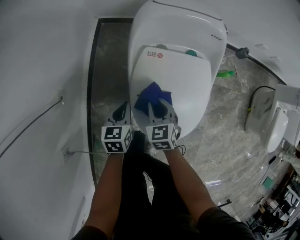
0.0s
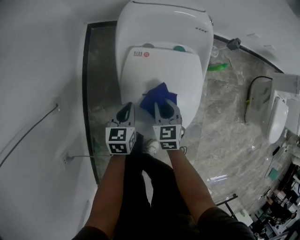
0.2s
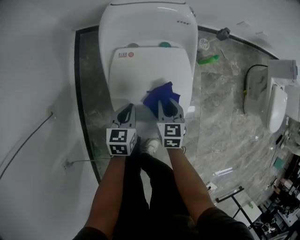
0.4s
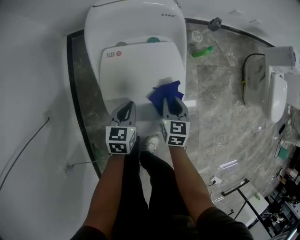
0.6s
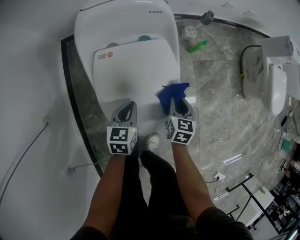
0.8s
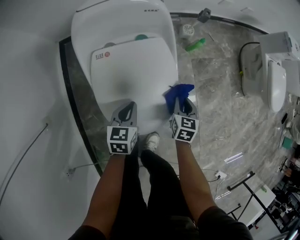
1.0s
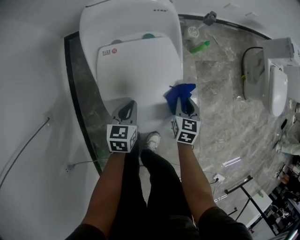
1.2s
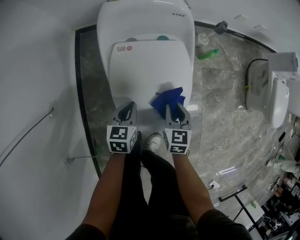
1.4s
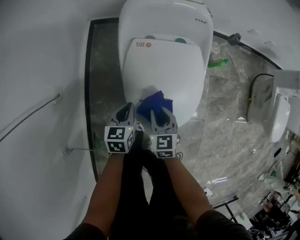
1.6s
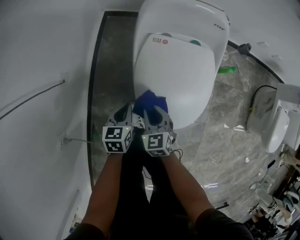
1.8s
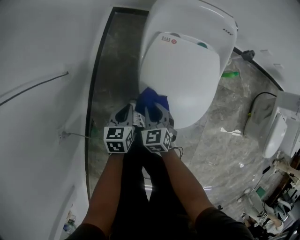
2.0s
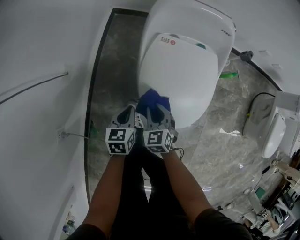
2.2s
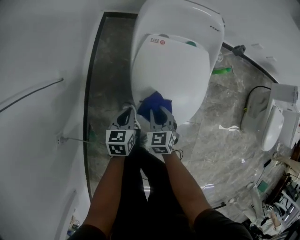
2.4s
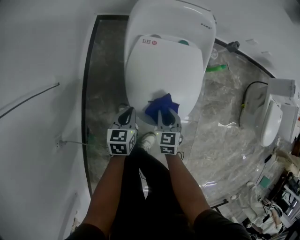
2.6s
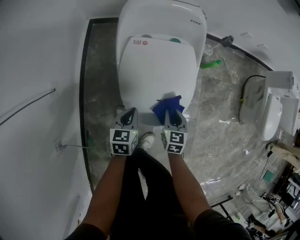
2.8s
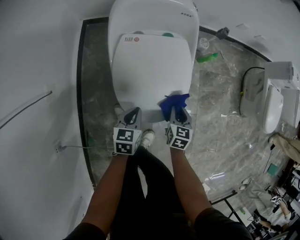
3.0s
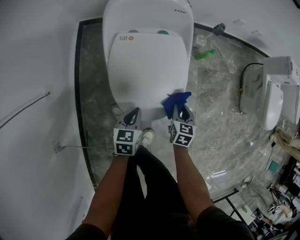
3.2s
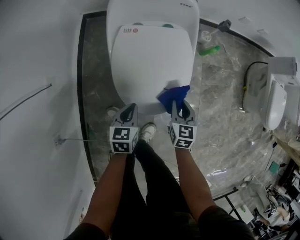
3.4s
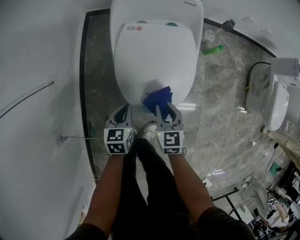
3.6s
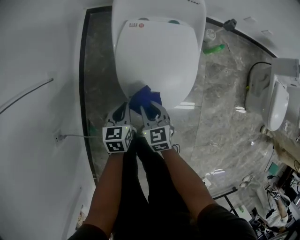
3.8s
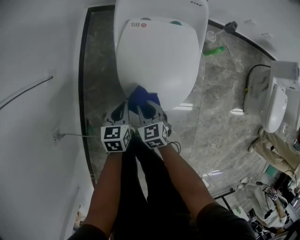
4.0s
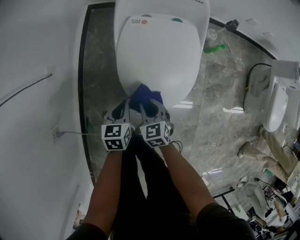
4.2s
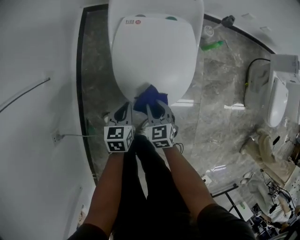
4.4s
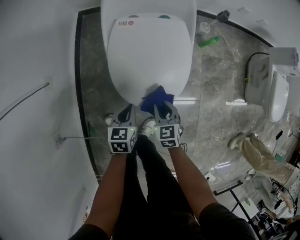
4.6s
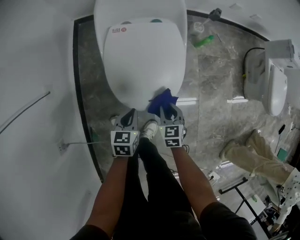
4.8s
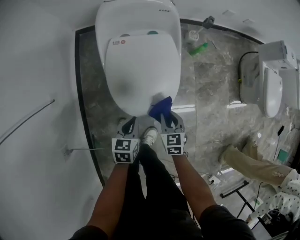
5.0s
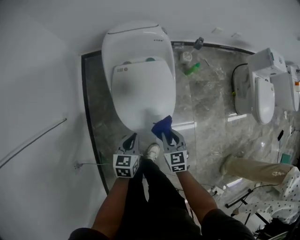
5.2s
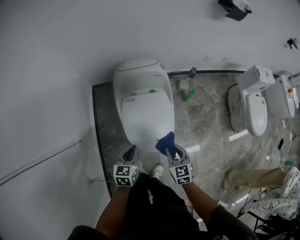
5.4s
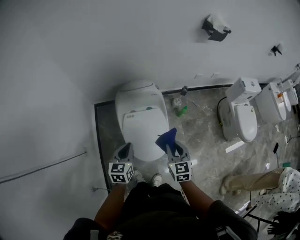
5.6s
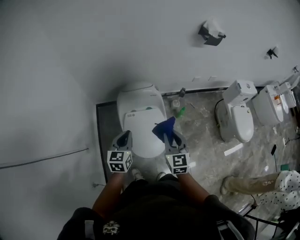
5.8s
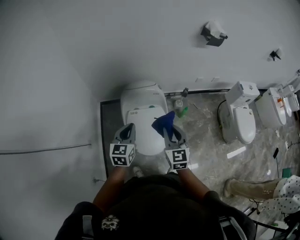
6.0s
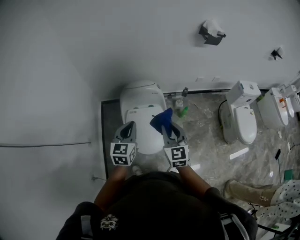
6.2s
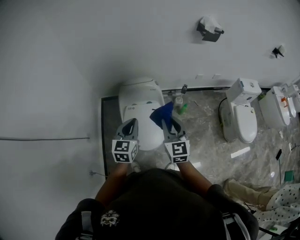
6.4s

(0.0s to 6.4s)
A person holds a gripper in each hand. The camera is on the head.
1.6s - 3.2s: The left gripper shifts by about 10 cm. The right gripper shifts by approximately 20 cm, and rotates some 30 degrees.
4.8s - 6.4s: The two grippers go some 50 cm upward. The left gripper turns by roughly 30 degrees; the right gripper tips its fingers upward by about 40 degrees.

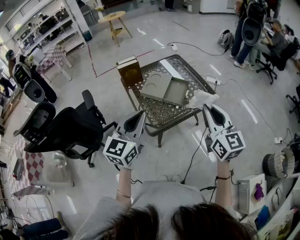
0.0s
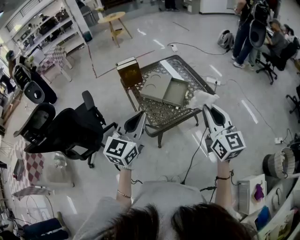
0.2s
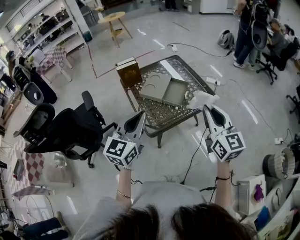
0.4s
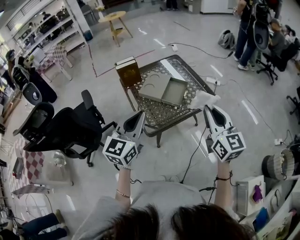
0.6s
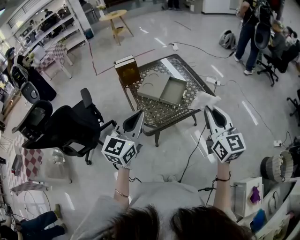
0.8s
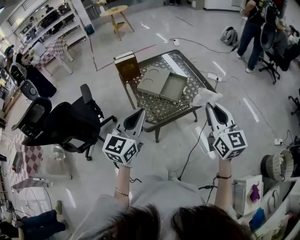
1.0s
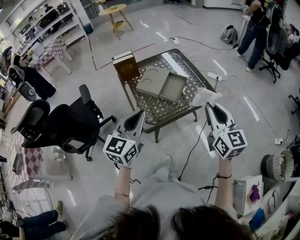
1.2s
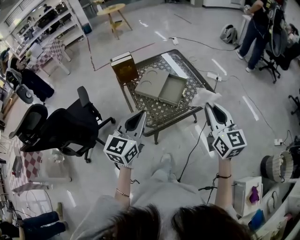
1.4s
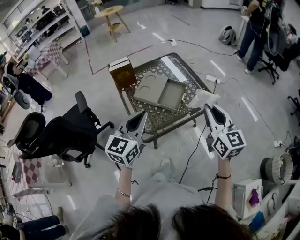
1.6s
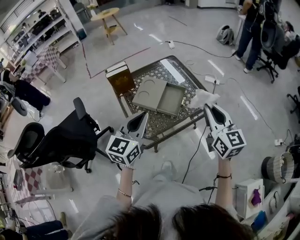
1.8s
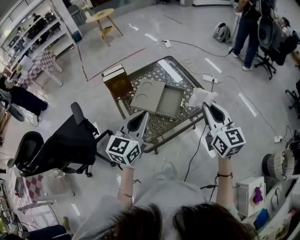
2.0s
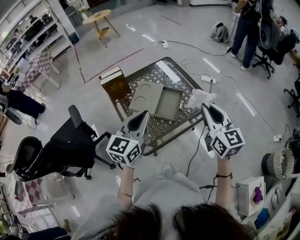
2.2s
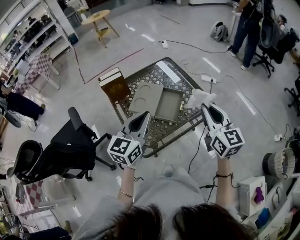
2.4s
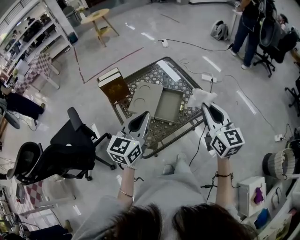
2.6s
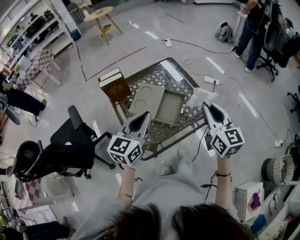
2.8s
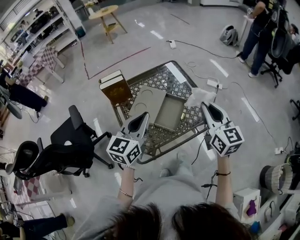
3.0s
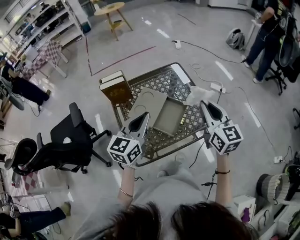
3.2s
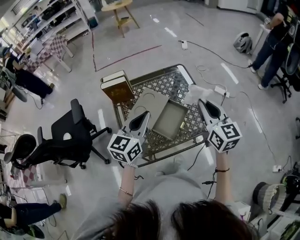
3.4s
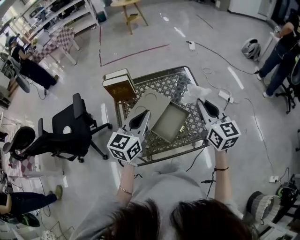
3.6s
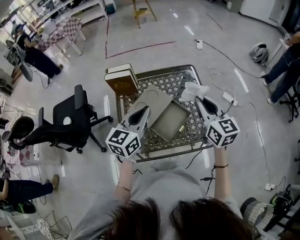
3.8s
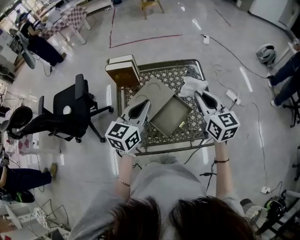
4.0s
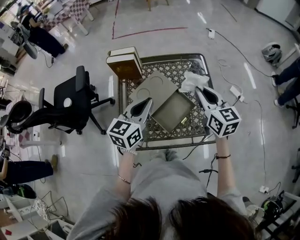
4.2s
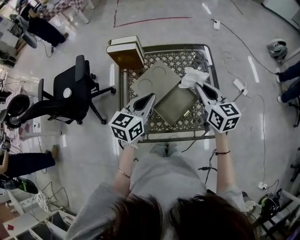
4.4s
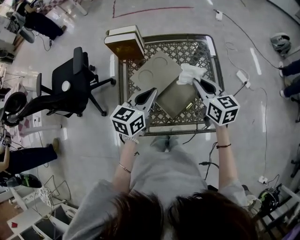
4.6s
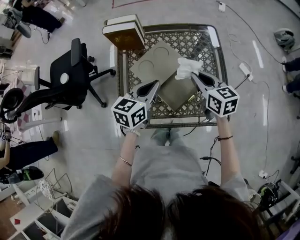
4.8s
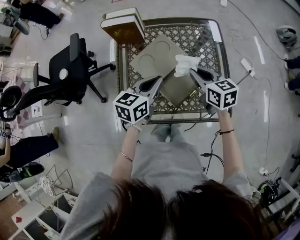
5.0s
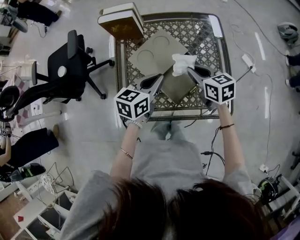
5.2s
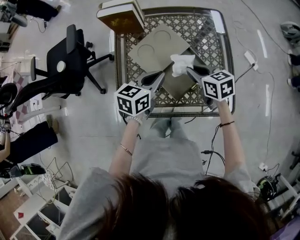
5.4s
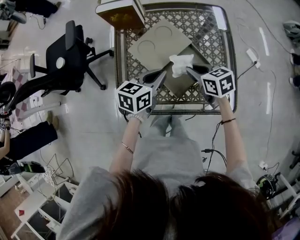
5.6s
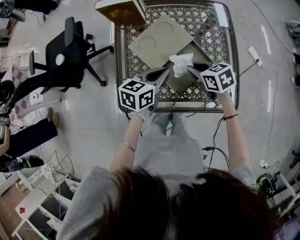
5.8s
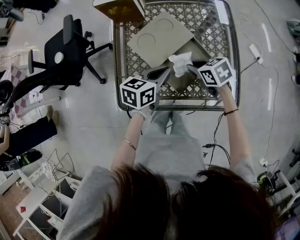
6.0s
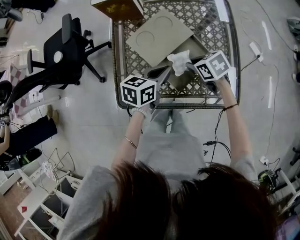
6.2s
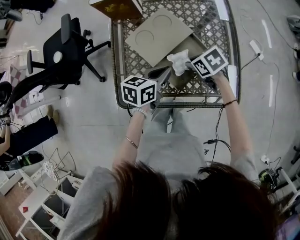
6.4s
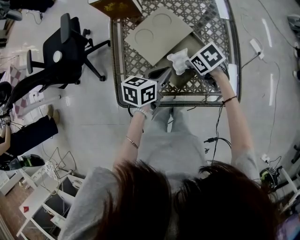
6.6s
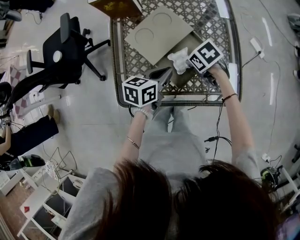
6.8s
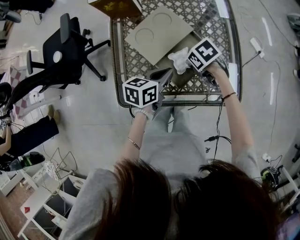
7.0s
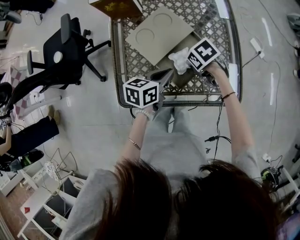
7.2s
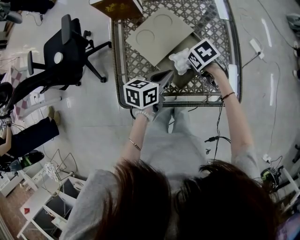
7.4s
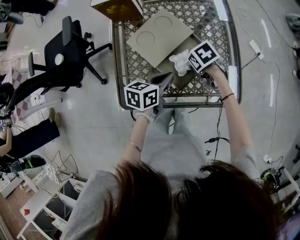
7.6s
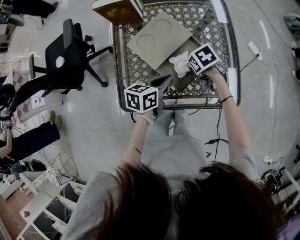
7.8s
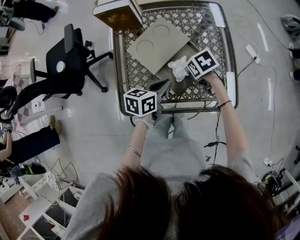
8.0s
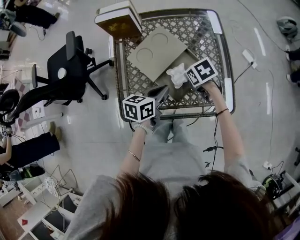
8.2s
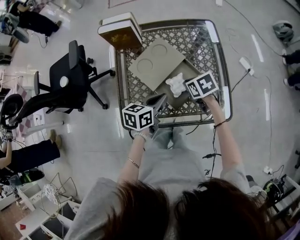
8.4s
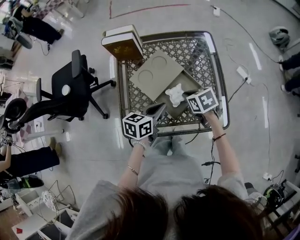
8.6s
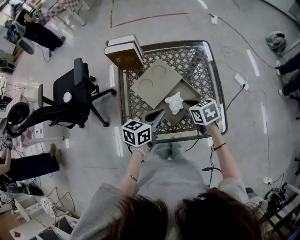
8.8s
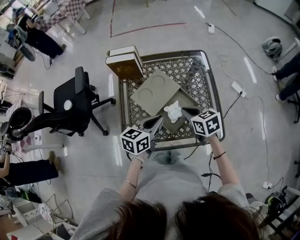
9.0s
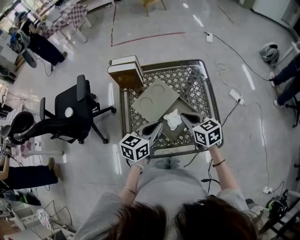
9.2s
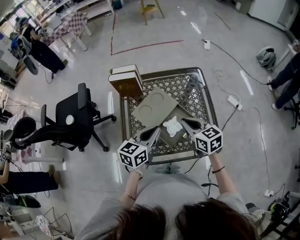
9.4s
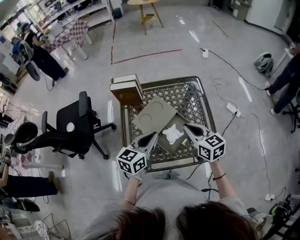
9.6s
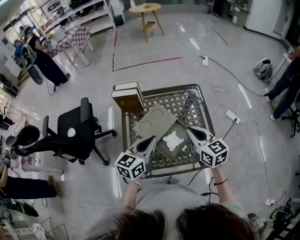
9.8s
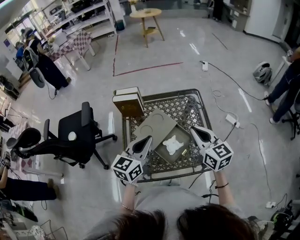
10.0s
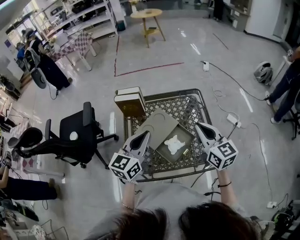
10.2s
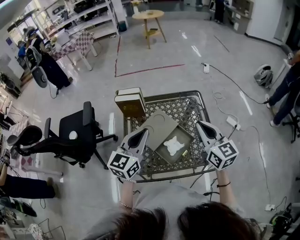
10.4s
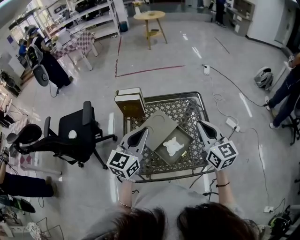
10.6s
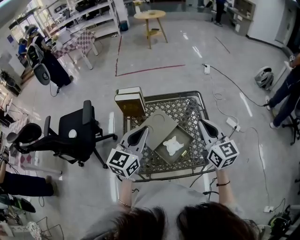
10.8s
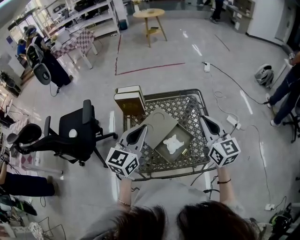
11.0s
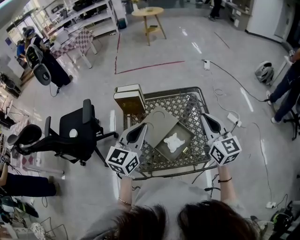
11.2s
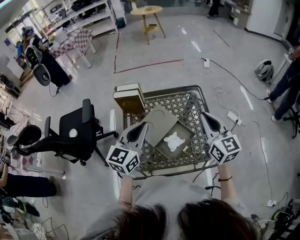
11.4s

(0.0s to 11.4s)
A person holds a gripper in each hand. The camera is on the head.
0.0s - 1.4s: The left gripper shifts by about 5 cm. The right gripper is displaced forward by some 5 cm.
1.4s - 2.8s: Both grippers move forward, approximately 15 cm.
2.8s - 4.2s: The right gripper ends up approximately 25 cm from where it was, and swivels approximately 30 degrees; the left gripper changes place by some 15 cm, and rotates roughly 20 degrees.
4.2s - 5.6s: Both grippers move downward, roughly 20 cm. The right gripper turns by some 40 degrees. The left gripper changes its angle by some 20 degrees.
5.6s - 7.2s: The left gripper shifts by some 5 cm; the right gripper heads downward, covering approximately 10 cm, and swivels about 30 degrees.
7.2s - 8.6s: The grippers both shift upward by roughly 5 cm. The right gripper rotates about 20 degrees, and opens, then closes again.
8.6s - 10.0s: The two grippers go about 20 cm upward. The right gripper points its fingers roughly 40 degrees further upward; the left gripper turns by approximately 30 degrees.
10.0s - 11.4s: The left gripper shifts by about 5 cm. Meanwhile the right gripper moves some 5 cm.

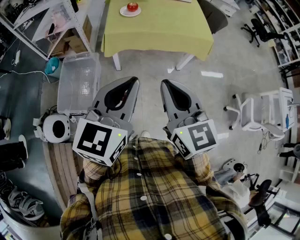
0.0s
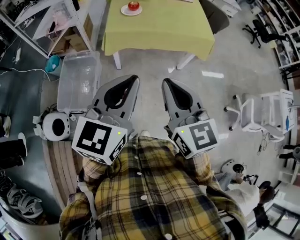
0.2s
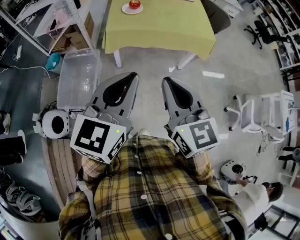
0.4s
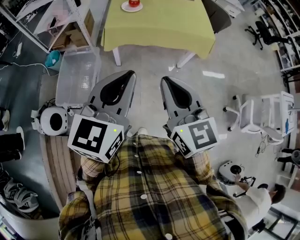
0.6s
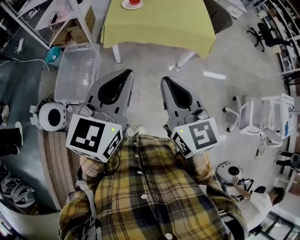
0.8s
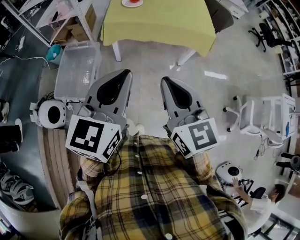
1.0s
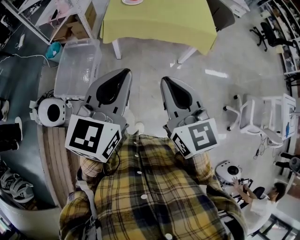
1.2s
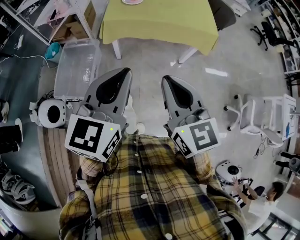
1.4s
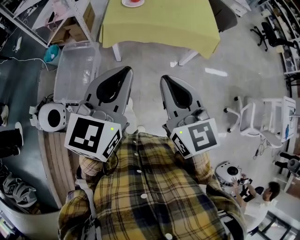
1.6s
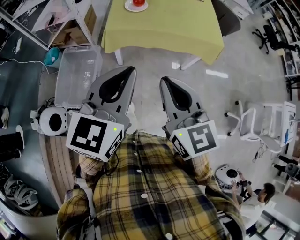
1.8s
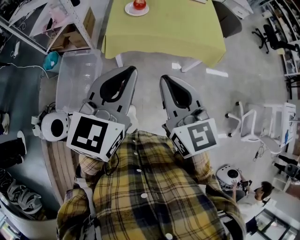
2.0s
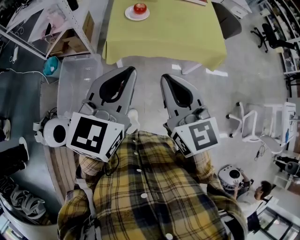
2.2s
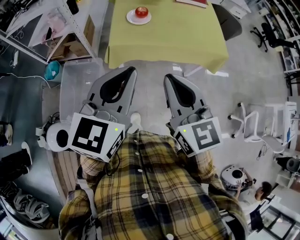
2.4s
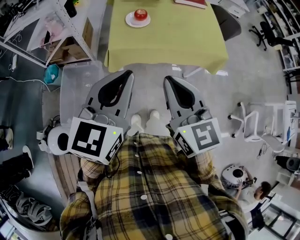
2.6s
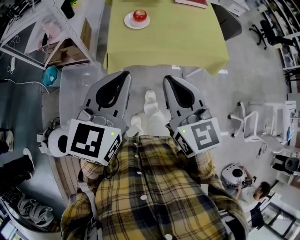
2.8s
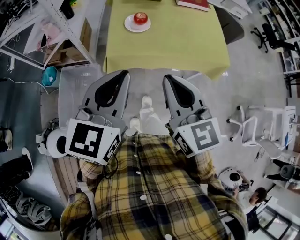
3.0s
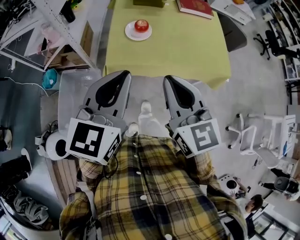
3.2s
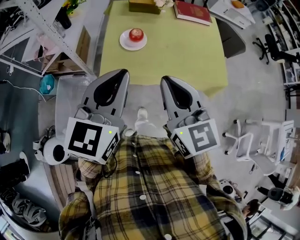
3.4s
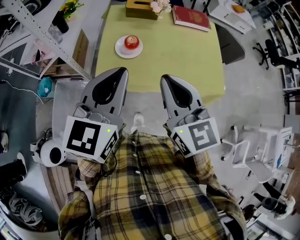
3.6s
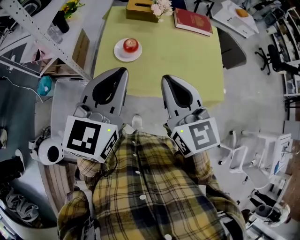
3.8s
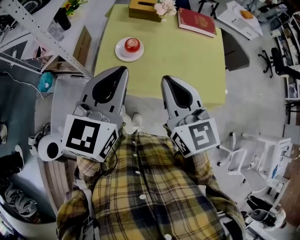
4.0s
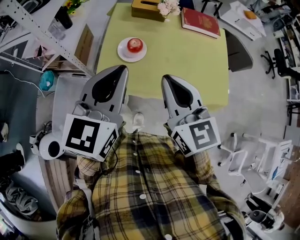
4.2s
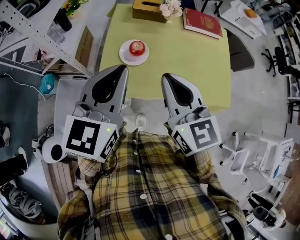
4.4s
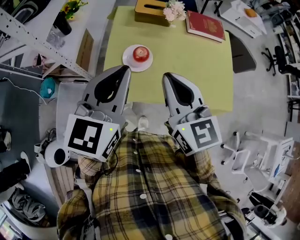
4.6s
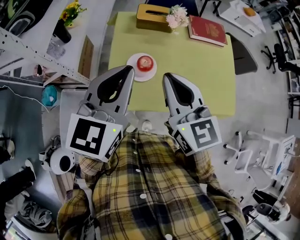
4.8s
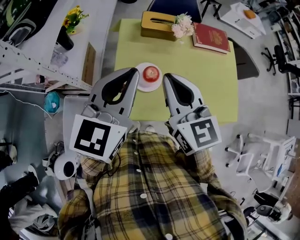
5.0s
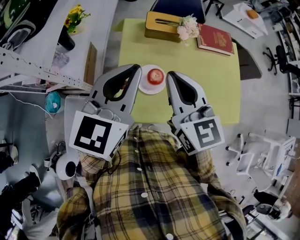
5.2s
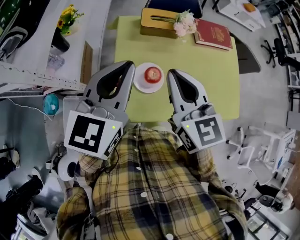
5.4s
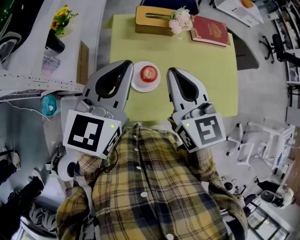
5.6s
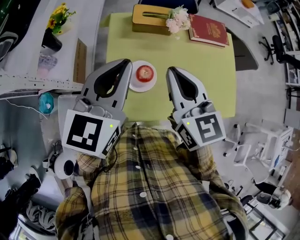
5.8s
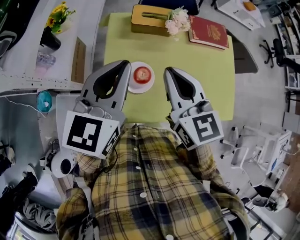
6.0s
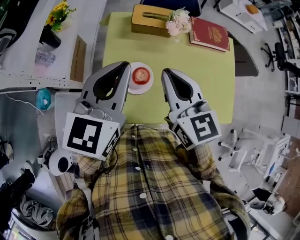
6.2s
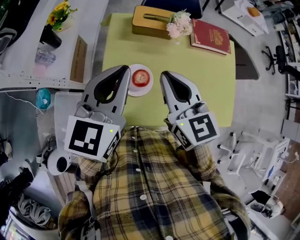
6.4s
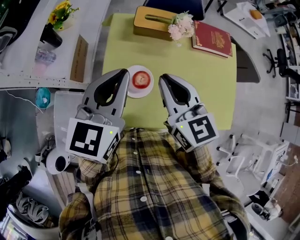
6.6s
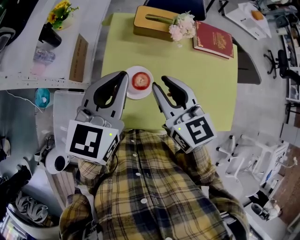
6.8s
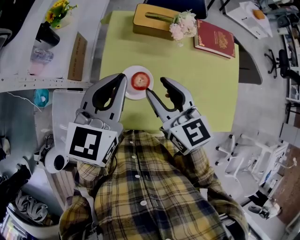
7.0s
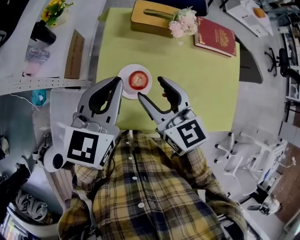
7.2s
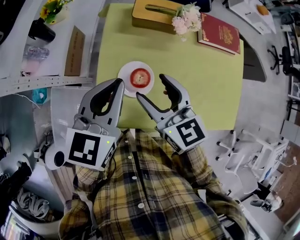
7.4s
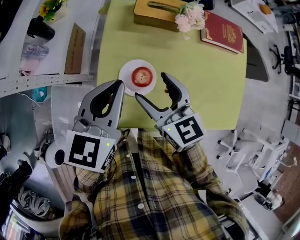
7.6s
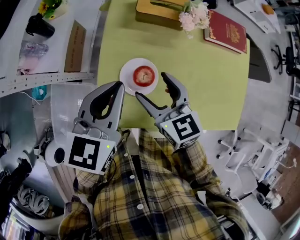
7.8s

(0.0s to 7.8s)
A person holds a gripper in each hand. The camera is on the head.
1.6s - 3.2s: Both grippers move forward, roughly 30 cm.
3.2s - 4.6s: Both grippers move forward, approximately 20 cm.
4.6s - 6.2s: Both grippers move forward, roughly 15 cm.
6.2s - 7.8s: The two grippers go some 15 cm downward. The right gripper opens.
